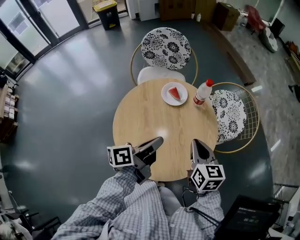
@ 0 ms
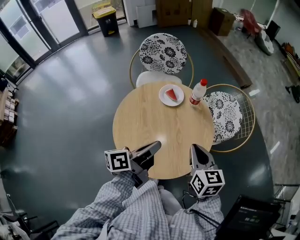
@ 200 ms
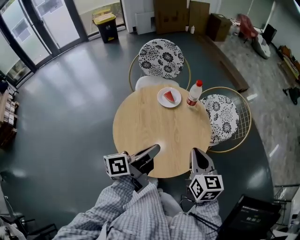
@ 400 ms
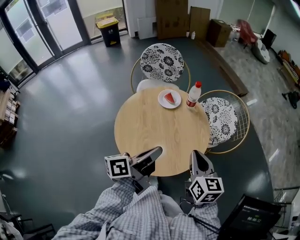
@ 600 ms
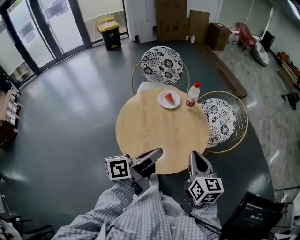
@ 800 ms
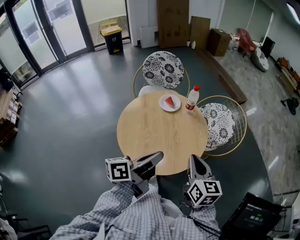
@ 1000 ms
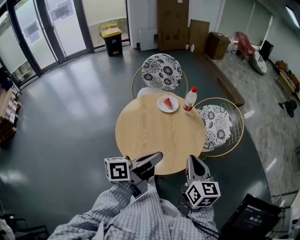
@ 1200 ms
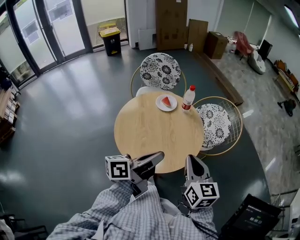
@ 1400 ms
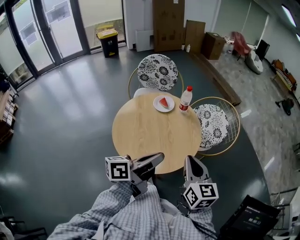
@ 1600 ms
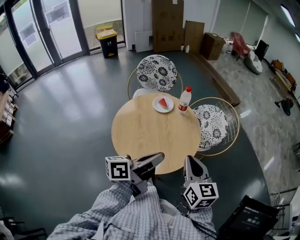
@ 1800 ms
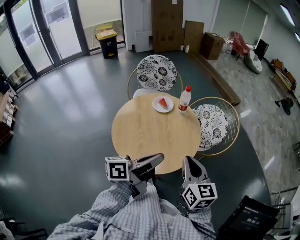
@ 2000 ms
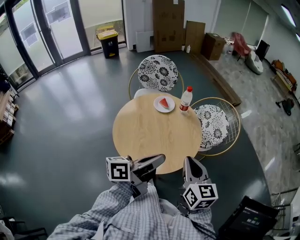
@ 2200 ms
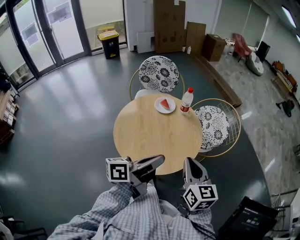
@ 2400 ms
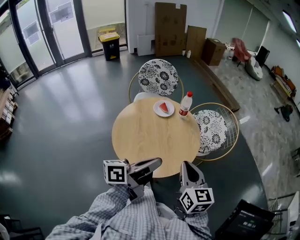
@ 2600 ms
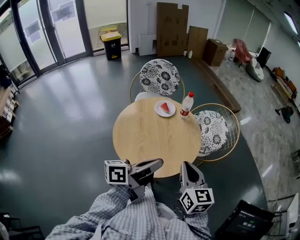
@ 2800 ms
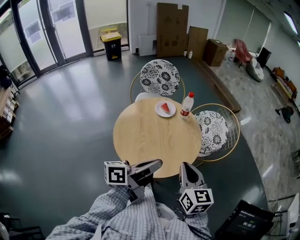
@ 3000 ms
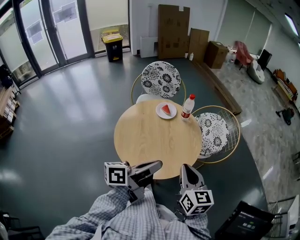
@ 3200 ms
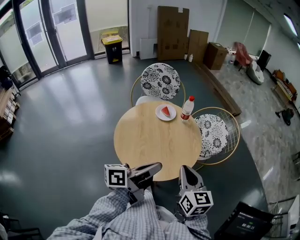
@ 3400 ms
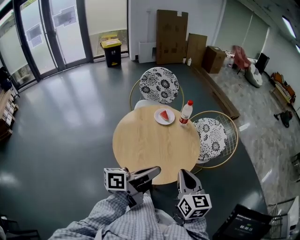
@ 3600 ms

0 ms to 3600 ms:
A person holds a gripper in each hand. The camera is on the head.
0 ms to 1800 ms: The right gripper moves approximately 20 cm.

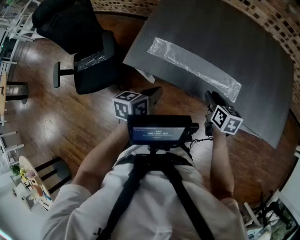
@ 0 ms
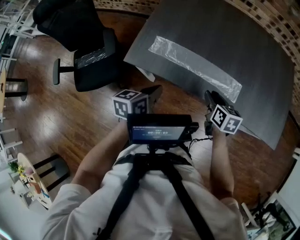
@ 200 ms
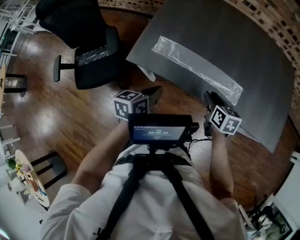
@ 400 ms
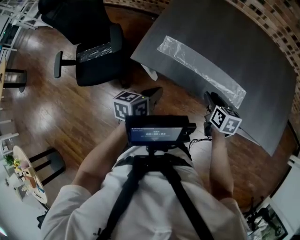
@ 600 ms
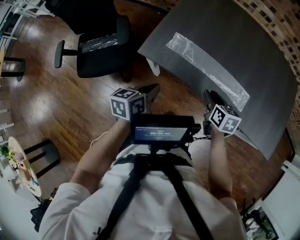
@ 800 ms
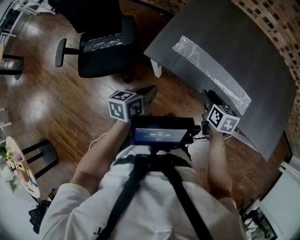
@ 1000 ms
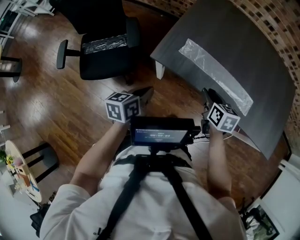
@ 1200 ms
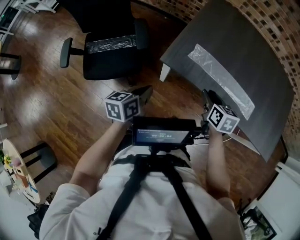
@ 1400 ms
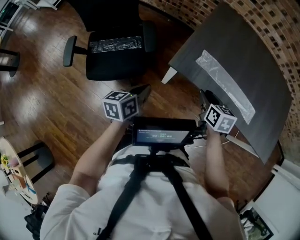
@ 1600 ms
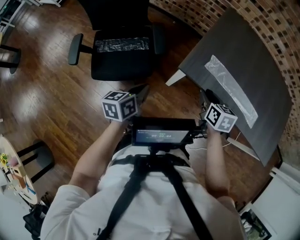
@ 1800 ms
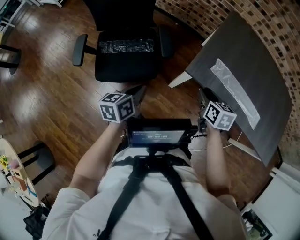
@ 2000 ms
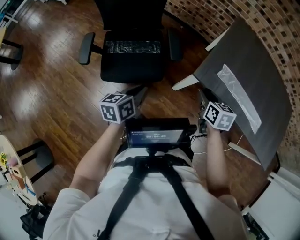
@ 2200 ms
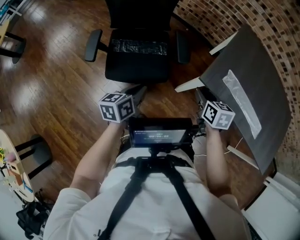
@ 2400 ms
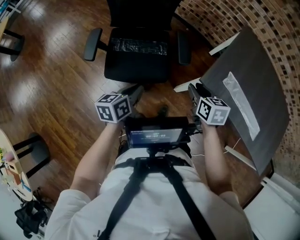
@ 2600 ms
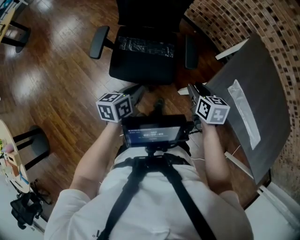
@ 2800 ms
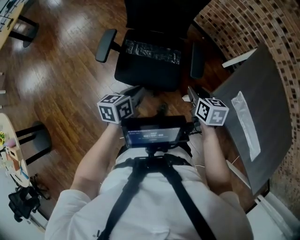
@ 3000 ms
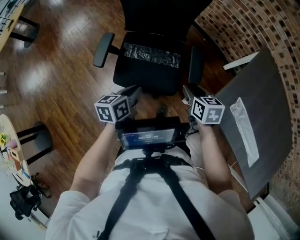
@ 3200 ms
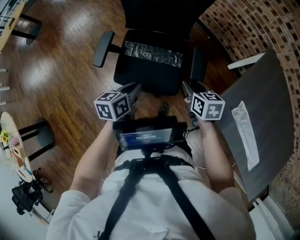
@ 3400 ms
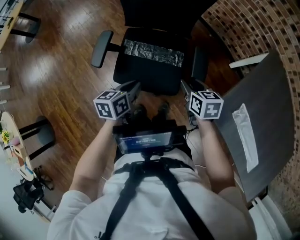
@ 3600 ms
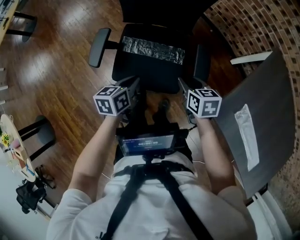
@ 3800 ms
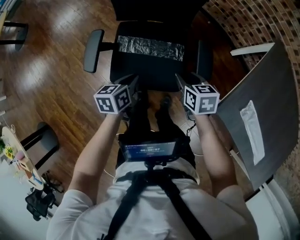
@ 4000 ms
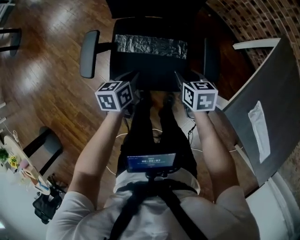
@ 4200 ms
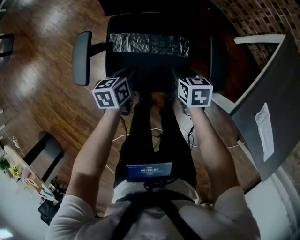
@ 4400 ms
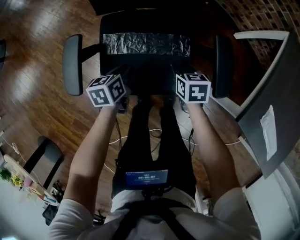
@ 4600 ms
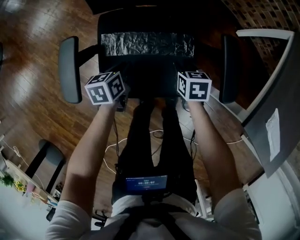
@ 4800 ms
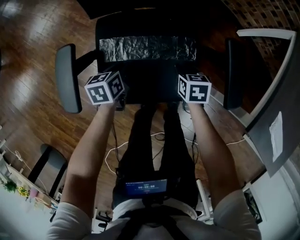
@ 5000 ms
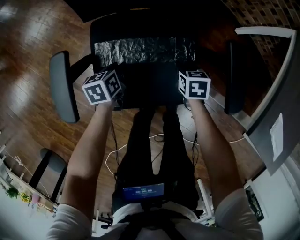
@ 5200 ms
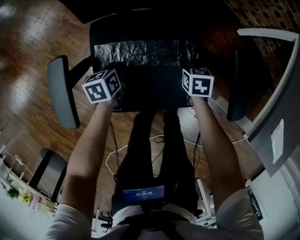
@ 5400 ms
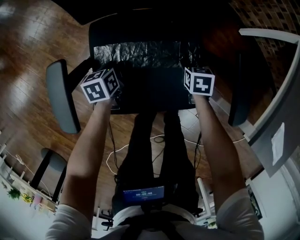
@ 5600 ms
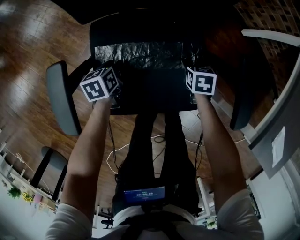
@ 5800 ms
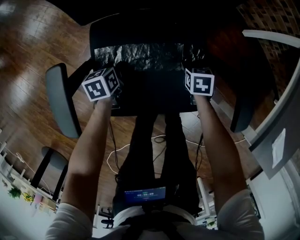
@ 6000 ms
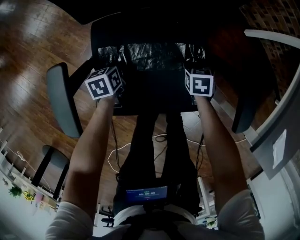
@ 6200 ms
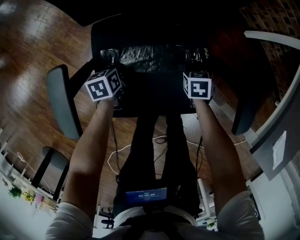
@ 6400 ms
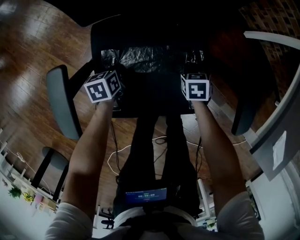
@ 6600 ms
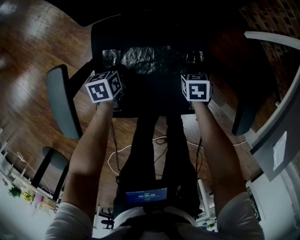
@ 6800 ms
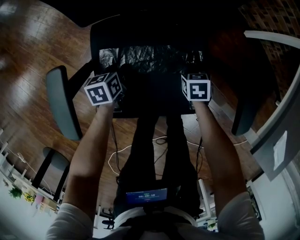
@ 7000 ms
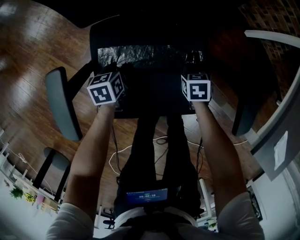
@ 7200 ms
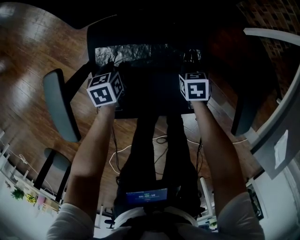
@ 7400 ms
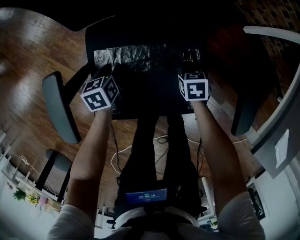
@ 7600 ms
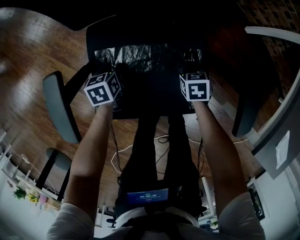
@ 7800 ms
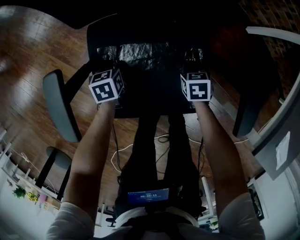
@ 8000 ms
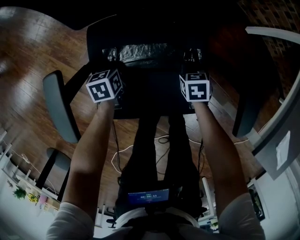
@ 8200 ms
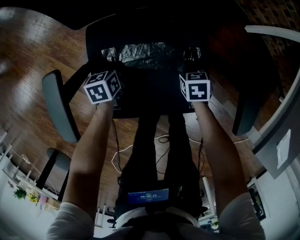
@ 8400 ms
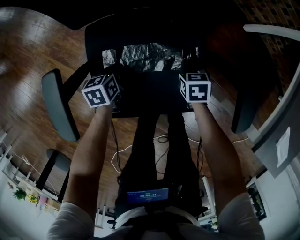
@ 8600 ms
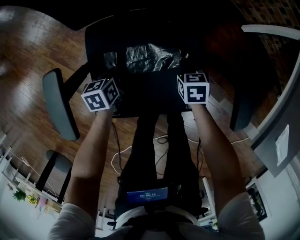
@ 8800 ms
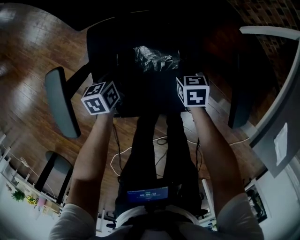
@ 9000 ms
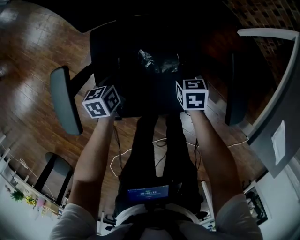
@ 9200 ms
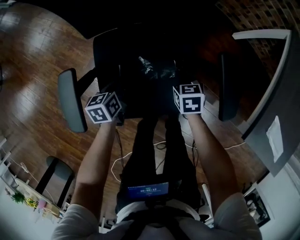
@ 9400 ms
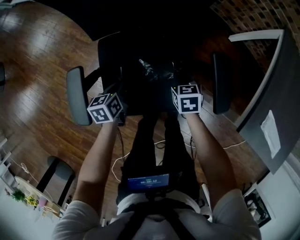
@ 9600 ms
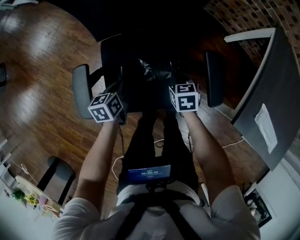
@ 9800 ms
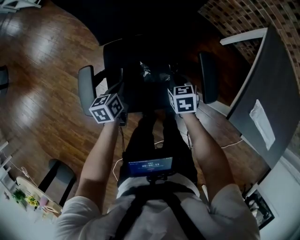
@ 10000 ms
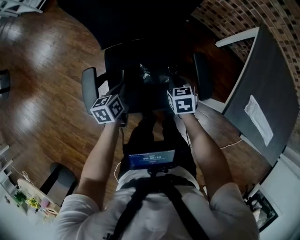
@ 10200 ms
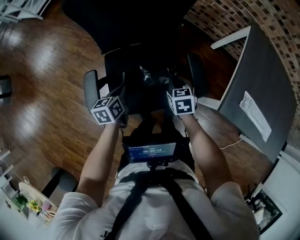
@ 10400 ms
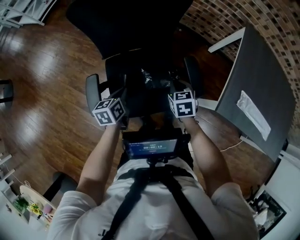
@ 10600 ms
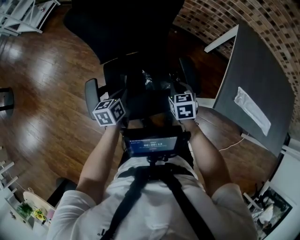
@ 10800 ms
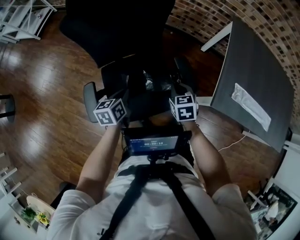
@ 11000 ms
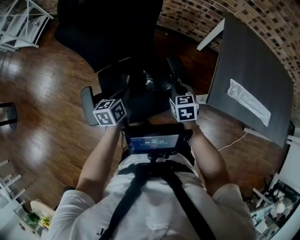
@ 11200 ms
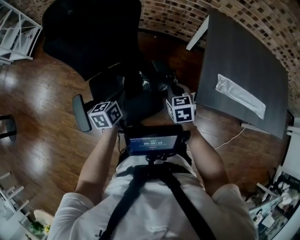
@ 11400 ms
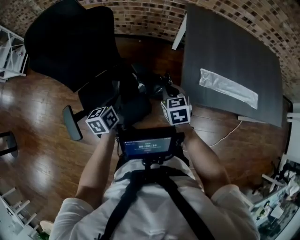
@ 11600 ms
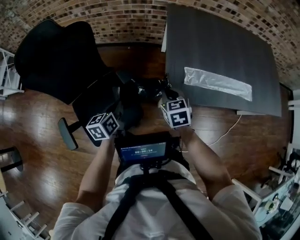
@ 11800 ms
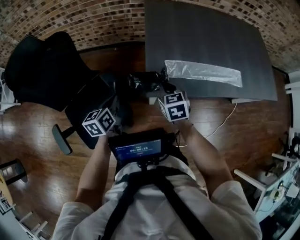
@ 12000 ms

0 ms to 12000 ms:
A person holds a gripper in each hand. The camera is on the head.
0 ms to 1600 ms: Both grippers move to the left, roughly 30 cm.
1600 ms to 3000 ms: Both grippers travel together to the left, some 25 cm. The right gripper changes its angle by some 20 degrees.
3000 ms to 4400 ms: The left gripper heads forward and downward, covering roughly 30 cm; the right gripper travels downward, forward and to the left by roughly 25 cm.
4400 ms to 6000 ms: The right gripper is displaced downward and forward by approximately 25 cm, turns by about 20 degrees, and opens up, while the left gripper goes approximately 25 cm downward, forward and to the left, and opens up.
6000 ms to 7600 ms: The left gripper closes and opens again. Meanwhile the right gripper closes up.
7600 ms to 9000 ms: The right gripper shifts some 5 cm upward; the left gripper closes its fingers.
9000 ms to 10400 ms: The two grippers go some 25 cm upward.
10400 ms to 12000 ms: The two grippers go approximately 35 cm to the right. The right gripper swivels some 30 degrees; the left gripper swivels approximately 30 degrees.

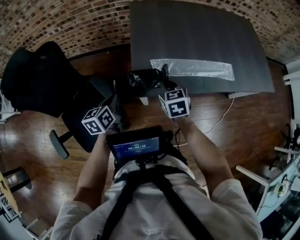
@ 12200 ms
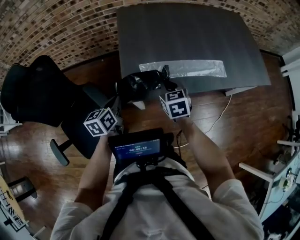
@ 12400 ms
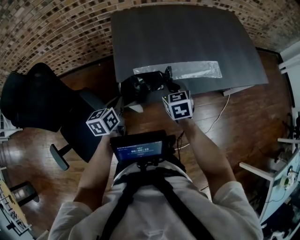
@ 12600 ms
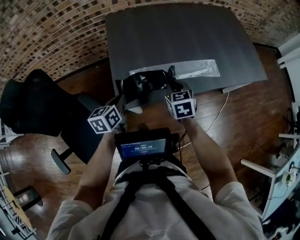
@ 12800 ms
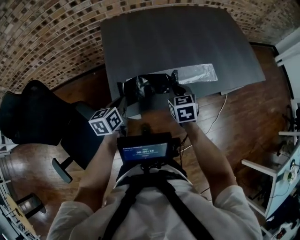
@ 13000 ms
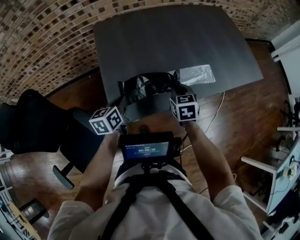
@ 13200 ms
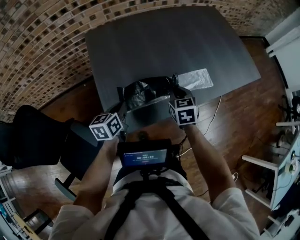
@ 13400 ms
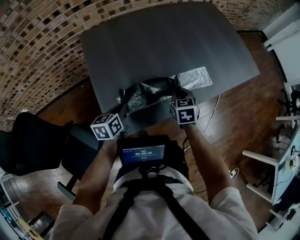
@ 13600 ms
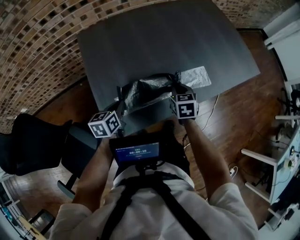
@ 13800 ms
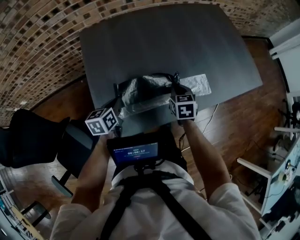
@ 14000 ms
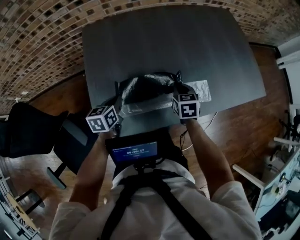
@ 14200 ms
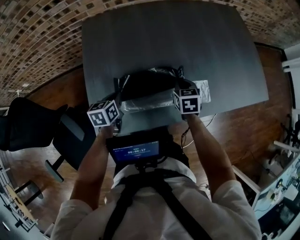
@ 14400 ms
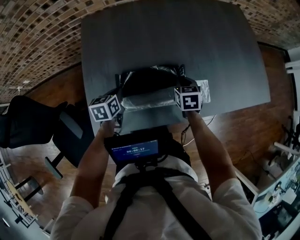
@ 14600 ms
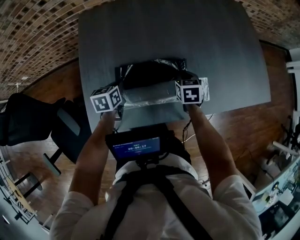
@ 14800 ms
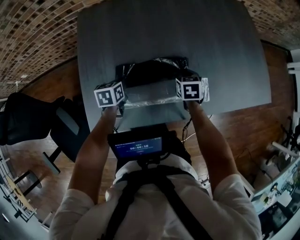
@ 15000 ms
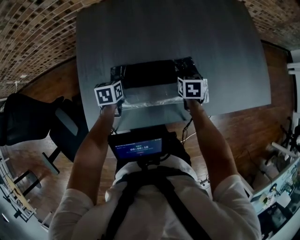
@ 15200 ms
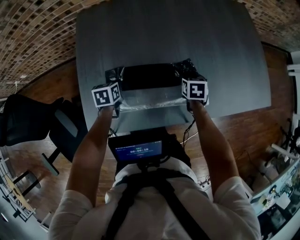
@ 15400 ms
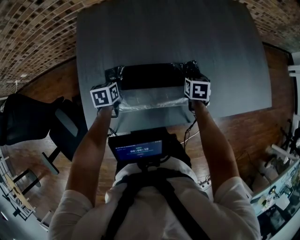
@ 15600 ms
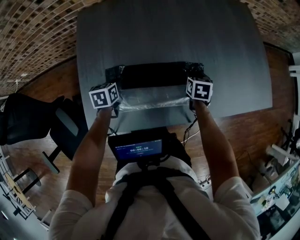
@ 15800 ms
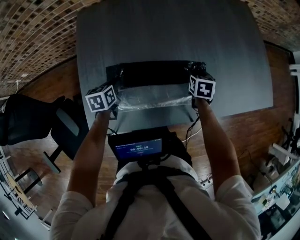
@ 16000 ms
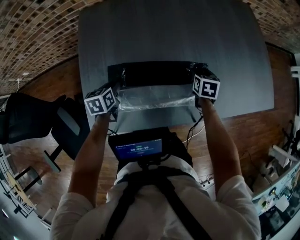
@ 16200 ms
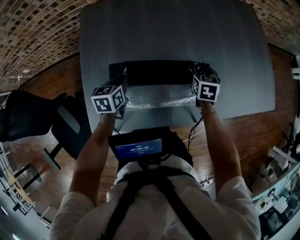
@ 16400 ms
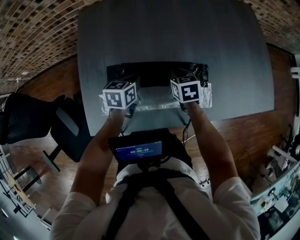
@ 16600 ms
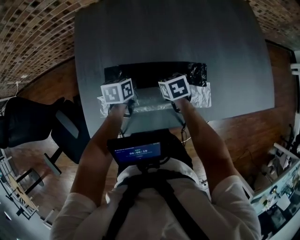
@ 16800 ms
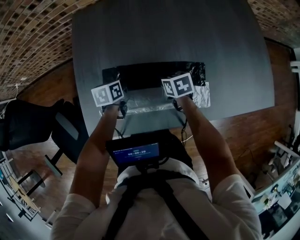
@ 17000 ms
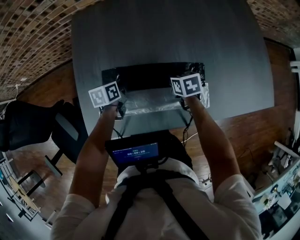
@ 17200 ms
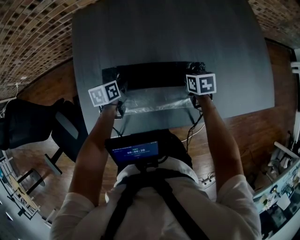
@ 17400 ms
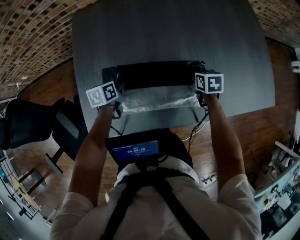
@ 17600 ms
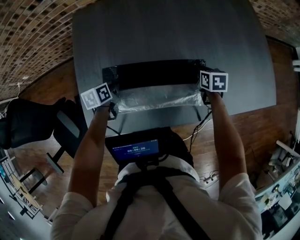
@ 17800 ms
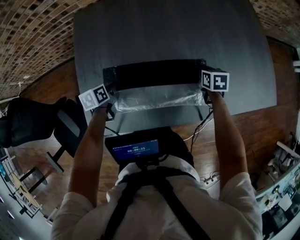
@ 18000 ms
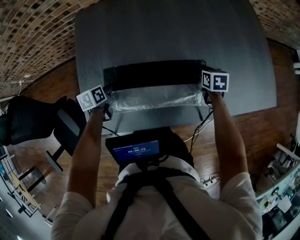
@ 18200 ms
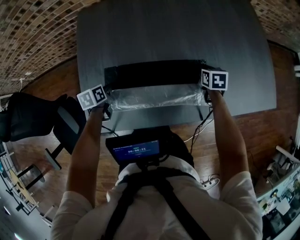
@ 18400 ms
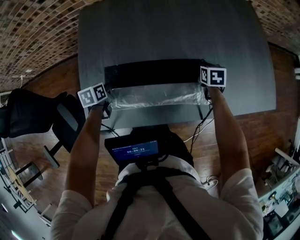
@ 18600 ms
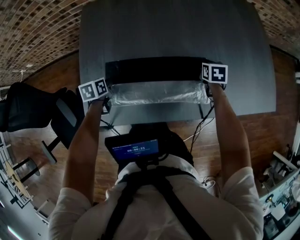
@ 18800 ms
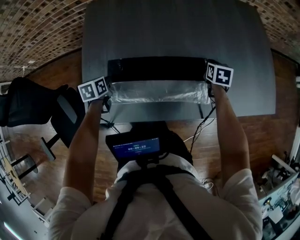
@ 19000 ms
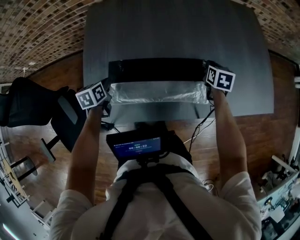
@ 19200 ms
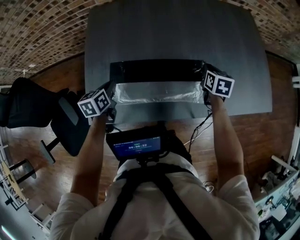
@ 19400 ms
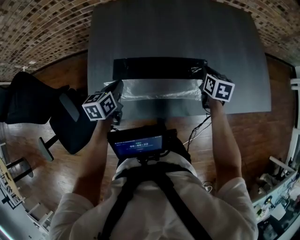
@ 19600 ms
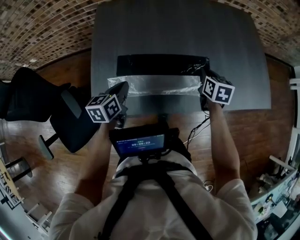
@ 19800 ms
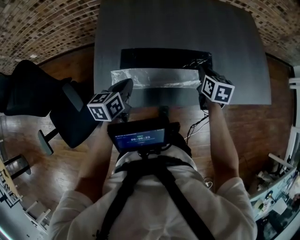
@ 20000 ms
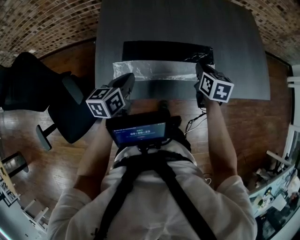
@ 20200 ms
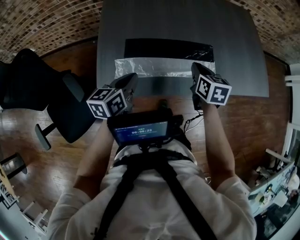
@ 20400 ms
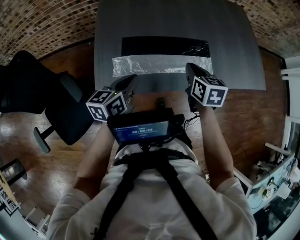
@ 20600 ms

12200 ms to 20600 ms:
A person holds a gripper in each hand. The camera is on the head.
12200 ms to 13600 ms: Both grippers move to the right and forward, about 25 cm. The left gripper rotates approximately 20 degrees. Meanwhile the right gripper swivels some 20 degrees.
13600 ms to 15000 ms: The right gripper moves forward, to the right and downward, roughly 20 cm. Meanwhile the left gripper moves forward, downward and to the right, roughly 15 cm, and swivels about 20 degrees.
15000 ms to 16400 ms: The right gripper heads to the right, covering about 5 cm, and opens up.
16400 ms to 17800 ms: The right gripper reaches about 15 cm to the left, then returns, and closes its fingers; the left gripper travels downward by about 5 cm, and moves roughly 5 cm to the right and comes back.
17800 ms to 19200 ms: The left gripper heads to the left and upward, covering roughly 10 cm. The right gripper travels upward by some 5 cm.
19200 ms to 20600 ms: The left gripper moves backward, upward and to the right, roughly 25 cm, and turns by about 30 degrees; the right gripper travels backward, to the left and upward by approximately 30 cm.
